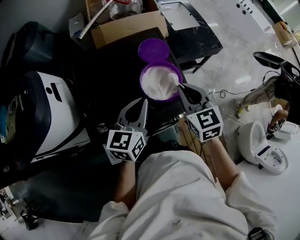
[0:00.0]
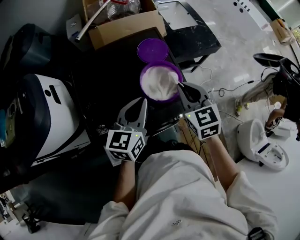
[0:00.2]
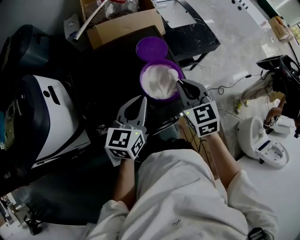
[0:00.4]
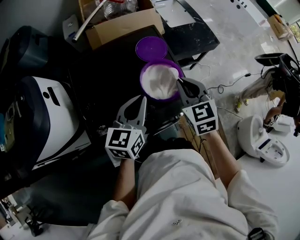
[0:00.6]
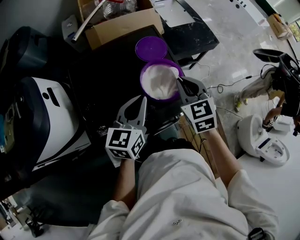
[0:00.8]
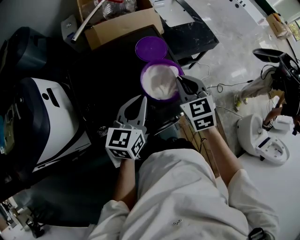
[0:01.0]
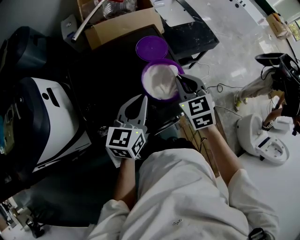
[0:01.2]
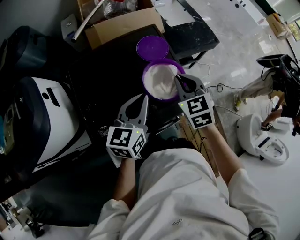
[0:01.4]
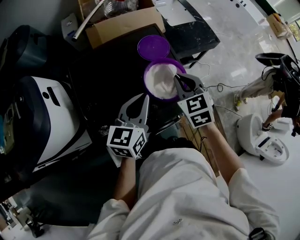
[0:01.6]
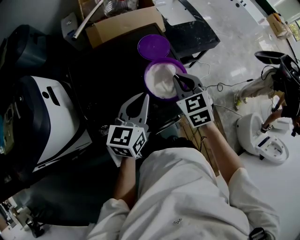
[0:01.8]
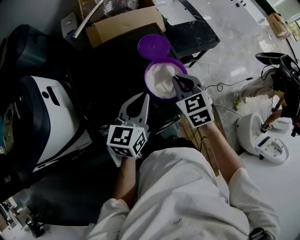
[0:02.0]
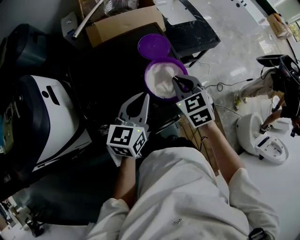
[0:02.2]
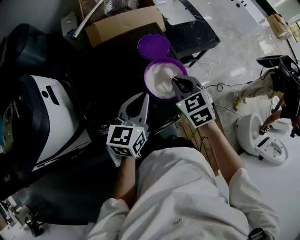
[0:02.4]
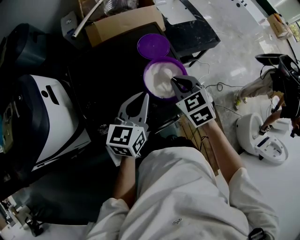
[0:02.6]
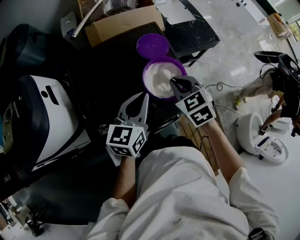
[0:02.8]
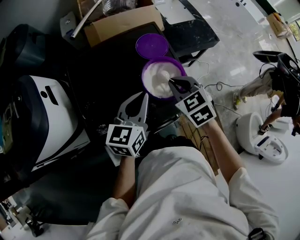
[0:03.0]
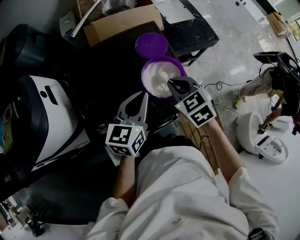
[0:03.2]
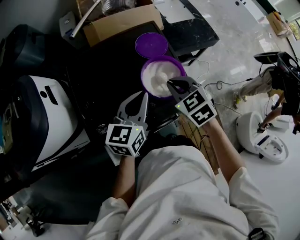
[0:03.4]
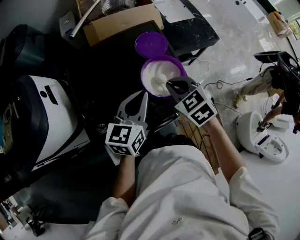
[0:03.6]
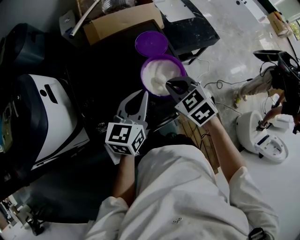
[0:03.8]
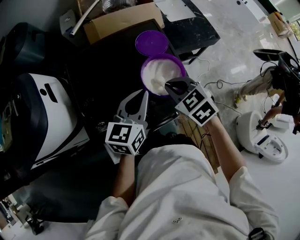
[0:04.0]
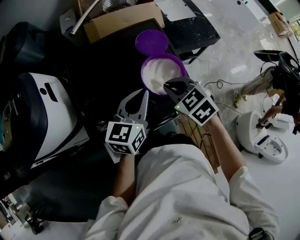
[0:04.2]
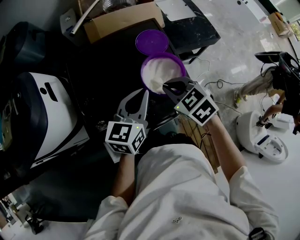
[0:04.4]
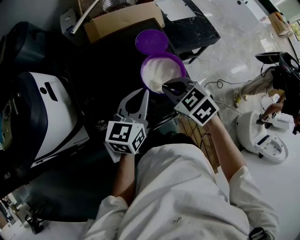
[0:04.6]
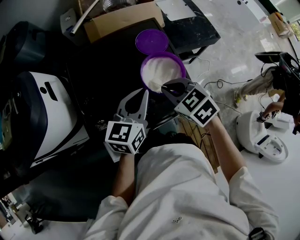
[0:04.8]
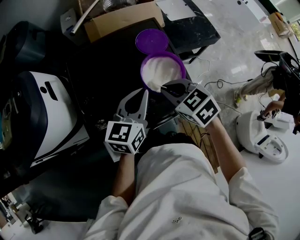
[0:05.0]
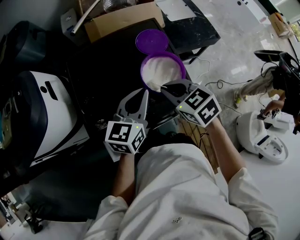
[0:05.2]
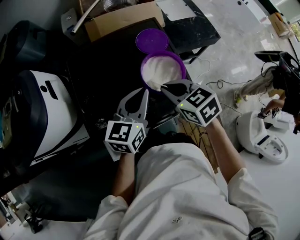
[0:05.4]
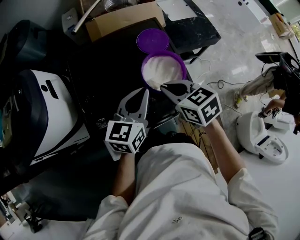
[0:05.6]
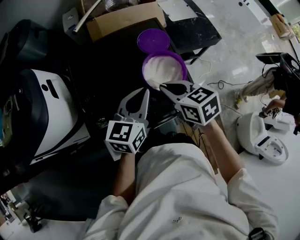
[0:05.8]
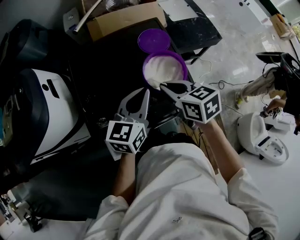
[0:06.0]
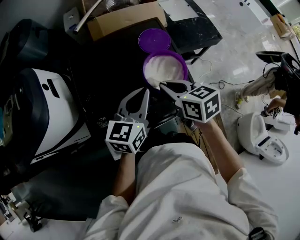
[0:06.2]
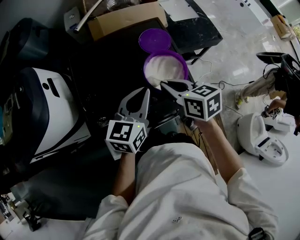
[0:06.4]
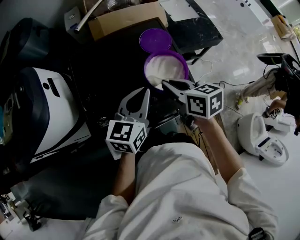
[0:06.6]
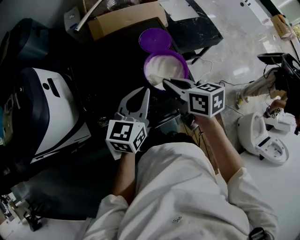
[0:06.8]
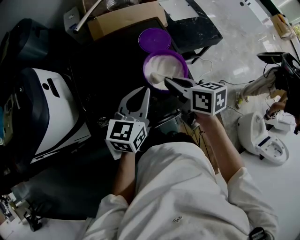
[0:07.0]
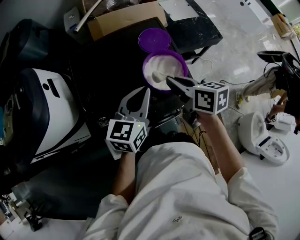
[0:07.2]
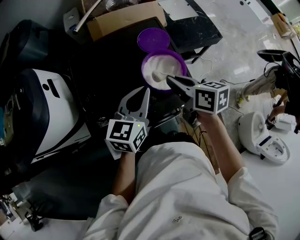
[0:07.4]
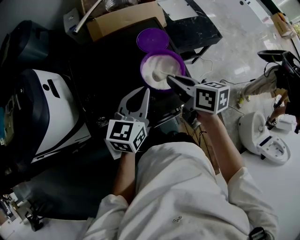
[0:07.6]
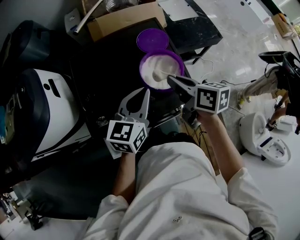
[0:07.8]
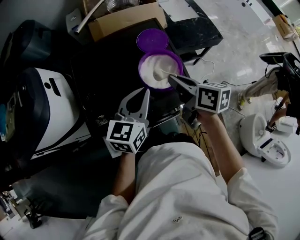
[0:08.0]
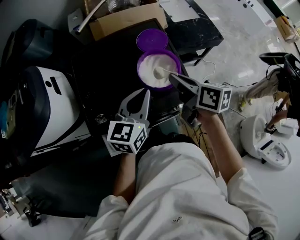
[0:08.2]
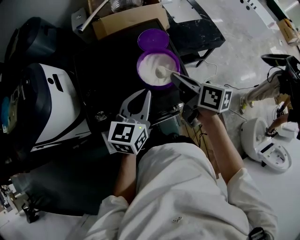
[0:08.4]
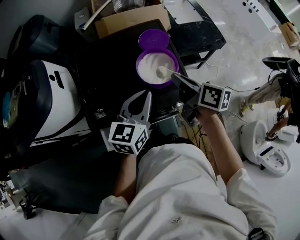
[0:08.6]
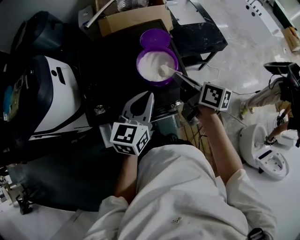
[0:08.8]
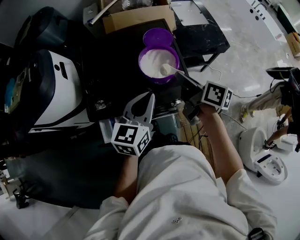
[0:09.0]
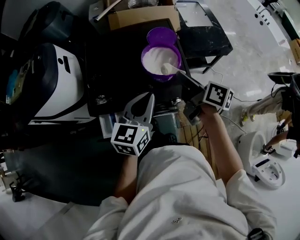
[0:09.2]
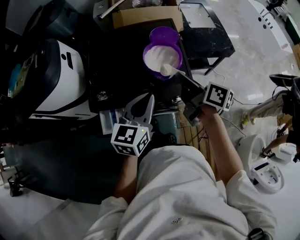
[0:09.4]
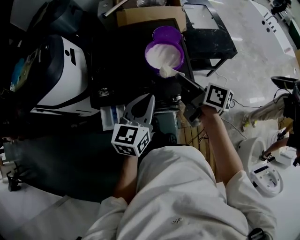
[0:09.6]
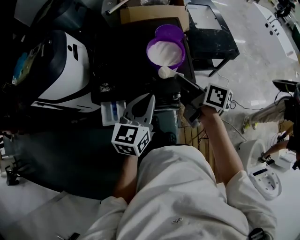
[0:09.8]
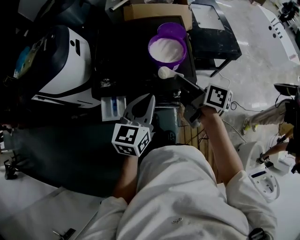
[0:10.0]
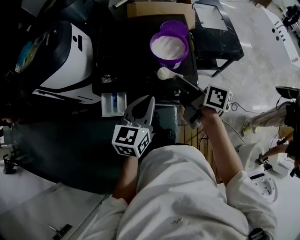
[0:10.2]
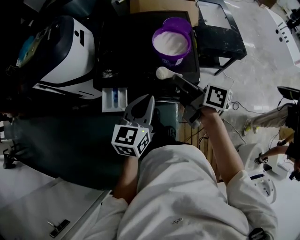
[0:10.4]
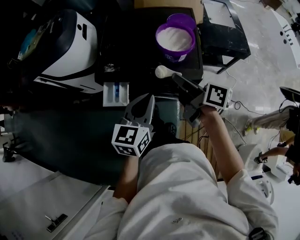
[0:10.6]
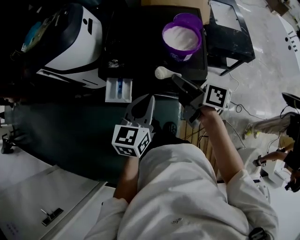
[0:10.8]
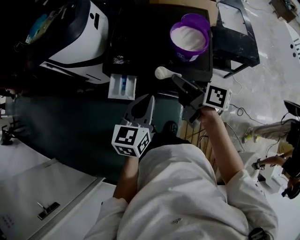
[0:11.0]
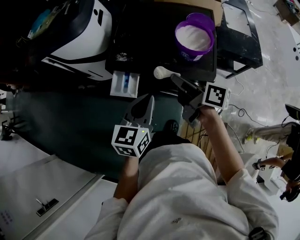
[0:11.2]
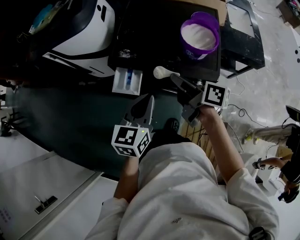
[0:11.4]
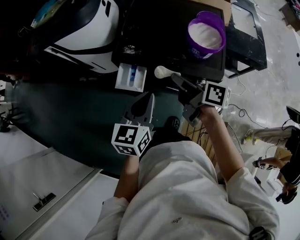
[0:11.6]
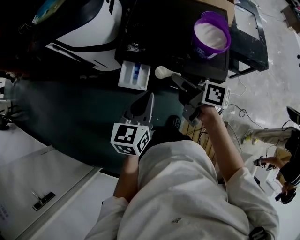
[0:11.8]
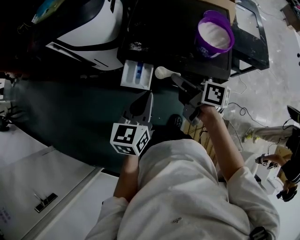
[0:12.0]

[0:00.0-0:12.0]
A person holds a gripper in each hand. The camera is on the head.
0:00.0 to 0:01.6: The right gripper ends up approximately 5 cm from where it was.
0:01.6 to 0:03.0: The grippers stay close to where they were, moving slightly.
0:03.0 to 0:04.4: The grippers move only a little.
0:04.4 to 0:06.0: The right gripper changes its angle by approximately 30 degrees.
0:06.0 to 0:07.6: The right gripper changes its angle by approximately 20 degrees.
0:07.6 to 0:09.0: The right gripper travels to the right by about 5 cm; the left gripper goes about 10 cm backward.
0:09.0 to 0:10.4: The right gripper shifts roughly 10 cm backward and to the left, while the left gripper heads backward, covering about 10 cm.
0:10.4 to 0:12.0: Both grippers move to the left, approximately 15 cm.

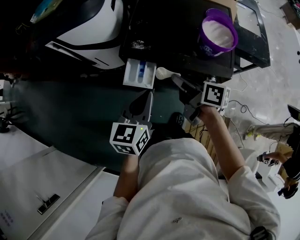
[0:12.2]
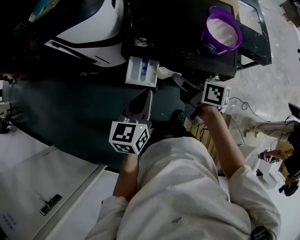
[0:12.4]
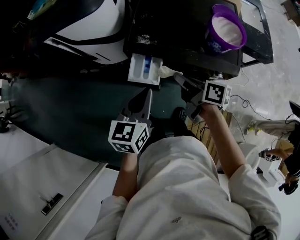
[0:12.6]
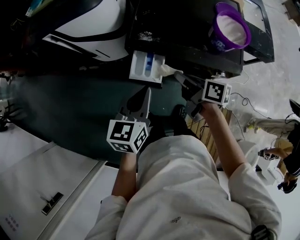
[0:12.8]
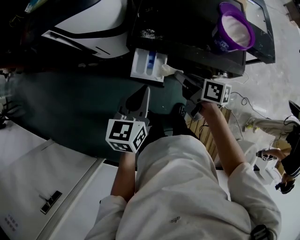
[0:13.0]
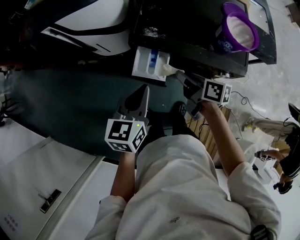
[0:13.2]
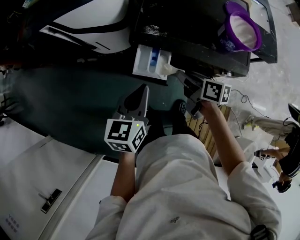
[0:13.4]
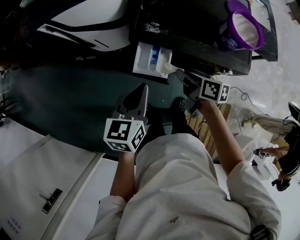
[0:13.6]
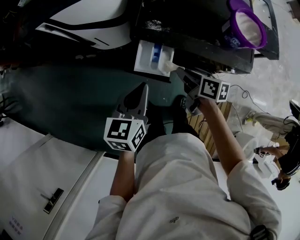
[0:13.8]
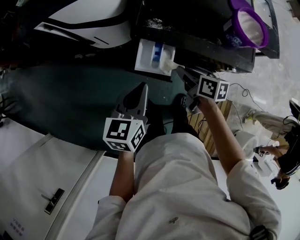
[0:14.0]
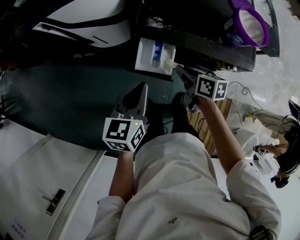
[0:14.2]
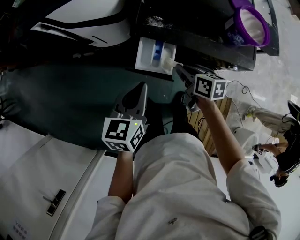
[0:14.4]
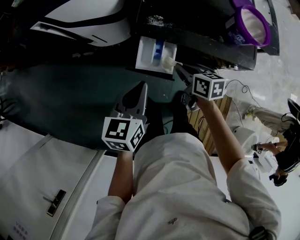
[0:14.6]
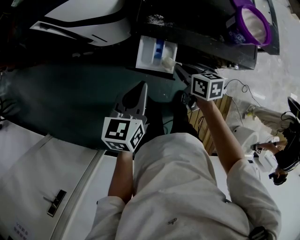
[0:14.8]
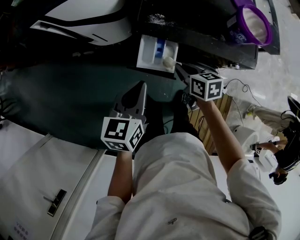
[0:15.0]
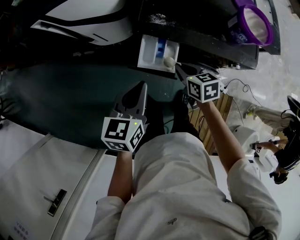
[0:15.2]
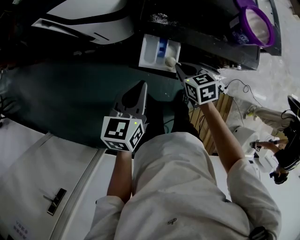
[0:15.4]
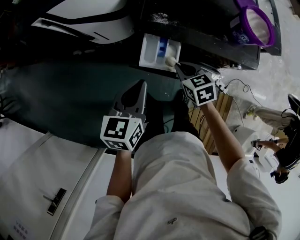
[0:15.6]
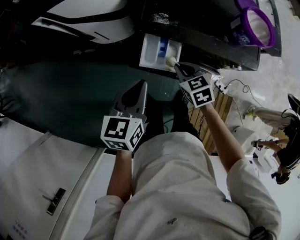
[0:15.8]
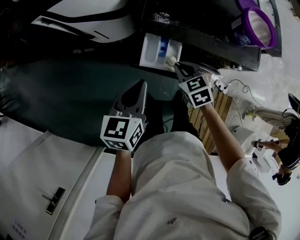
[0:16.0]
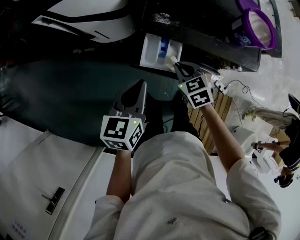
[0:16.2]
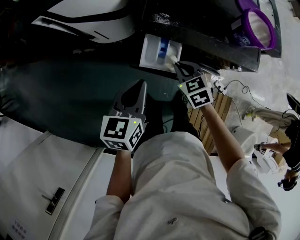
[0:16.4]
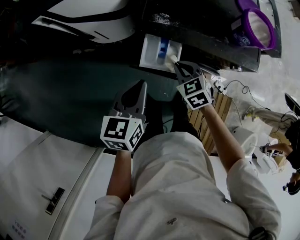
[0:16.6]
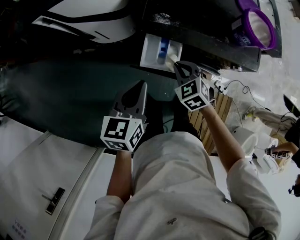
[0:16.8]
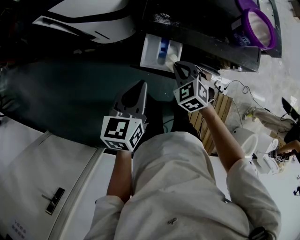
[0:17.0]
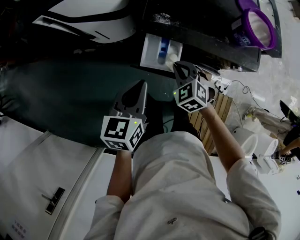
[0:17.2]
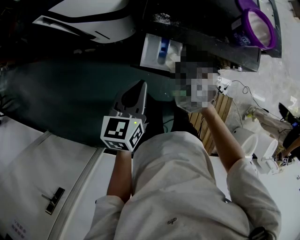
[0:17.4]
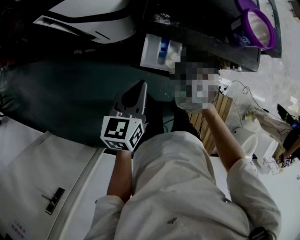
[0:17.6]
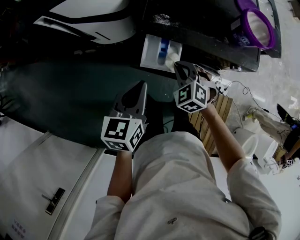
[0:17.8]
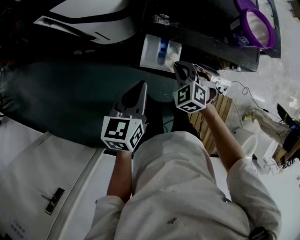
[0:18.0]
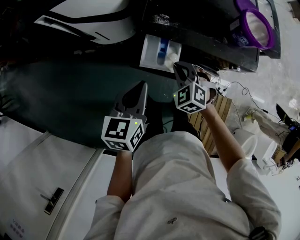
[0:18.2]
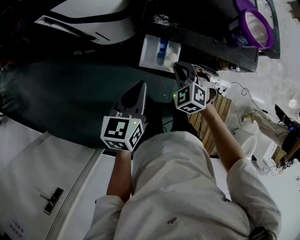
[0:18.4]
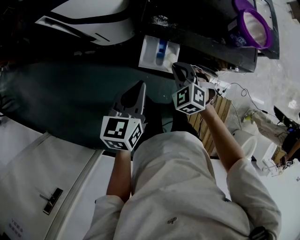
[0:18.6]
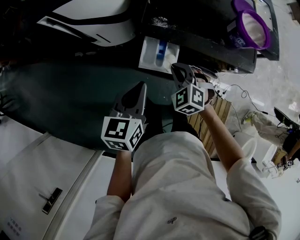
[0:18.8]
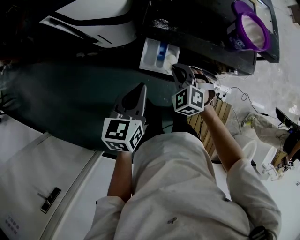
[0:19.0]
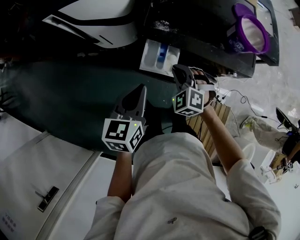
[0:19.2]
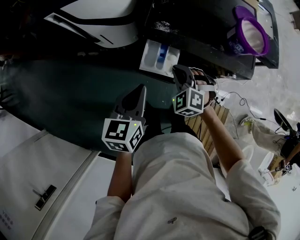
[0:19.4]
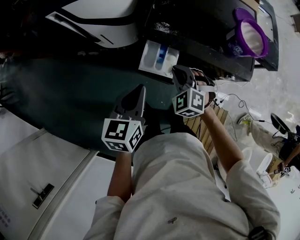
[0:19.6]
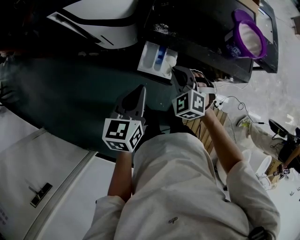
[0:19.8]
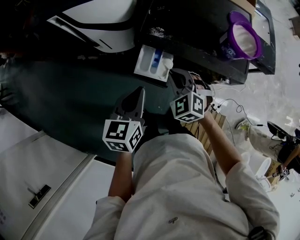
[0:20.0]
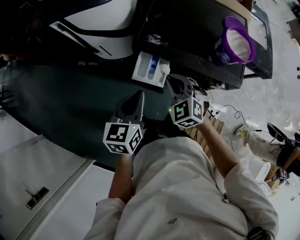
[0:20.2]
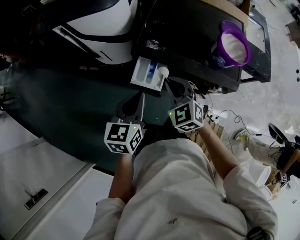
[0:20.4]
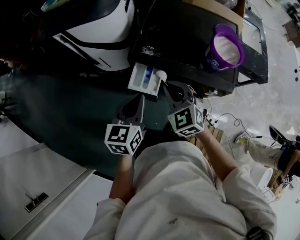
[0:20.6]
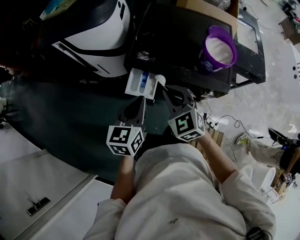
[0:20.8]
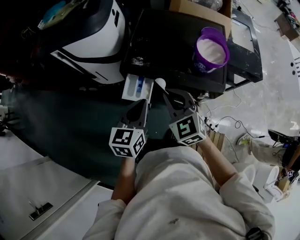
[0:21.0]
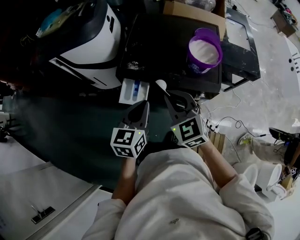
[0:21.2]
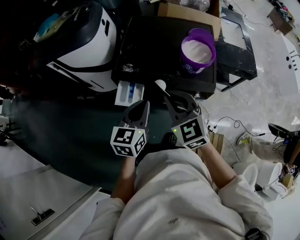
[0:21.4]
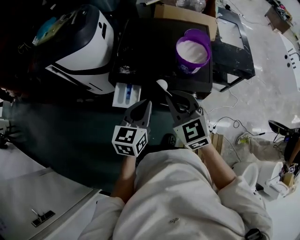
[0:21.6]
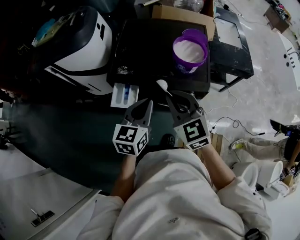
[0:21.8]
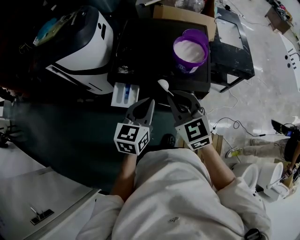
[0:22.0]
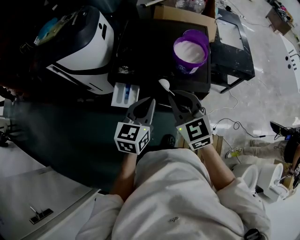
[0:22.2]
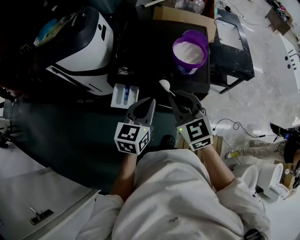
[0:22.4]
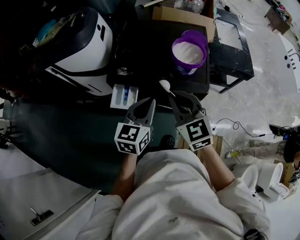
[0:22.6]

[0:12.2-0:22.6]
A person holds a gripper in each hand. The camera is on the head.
0:12.2 to 0:13.6: The left gripper is displaced to the left by about 10 cm, while the right gripper moves downward and to the left, some 10 cm.
0:13.6 to 0:15.2: The right gripper shifts some 5 cm downward, and changes its angle by about 30 degrees.
0:15.2 to 0:16.6: The right gripper swivels some 30 degrees.
0:16.6 to 0:18.2: The right gripper turns by approximately 30 degrees.
0:18.2 to 0:19.6: There are only small adjustments of the grippers.
0:19.6 to 0:21.2: The right gripper is displaced upward and to the right by about 20 cm, and rotates approximately 30 degrees. Meanwhile the left gripper goes some 15 cm to the right.
0:21.2 to 0:22.6: Both grippers move to the right, roughly 10 cm.

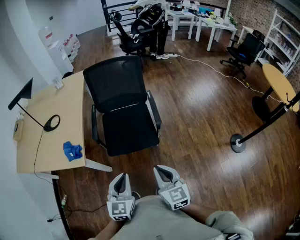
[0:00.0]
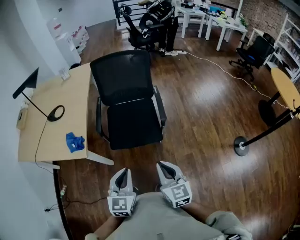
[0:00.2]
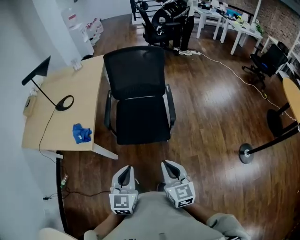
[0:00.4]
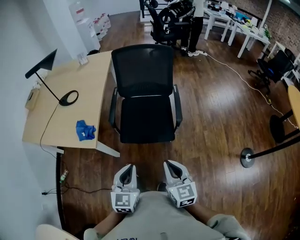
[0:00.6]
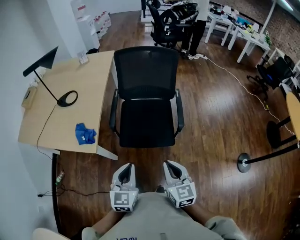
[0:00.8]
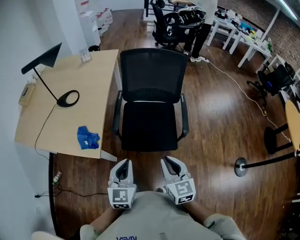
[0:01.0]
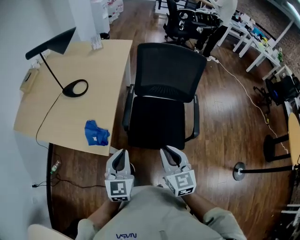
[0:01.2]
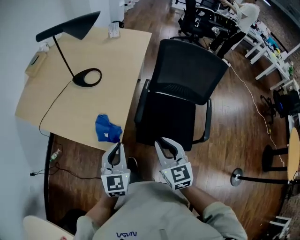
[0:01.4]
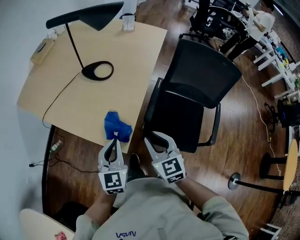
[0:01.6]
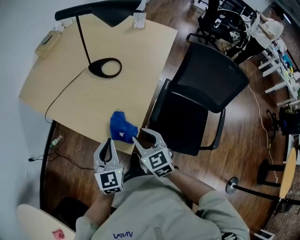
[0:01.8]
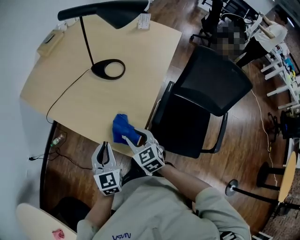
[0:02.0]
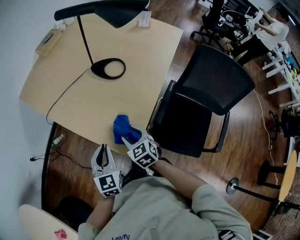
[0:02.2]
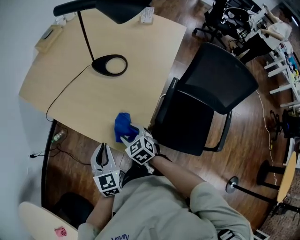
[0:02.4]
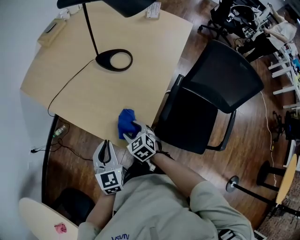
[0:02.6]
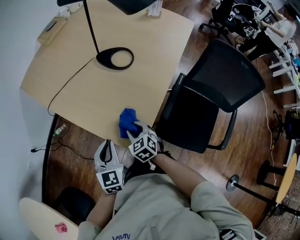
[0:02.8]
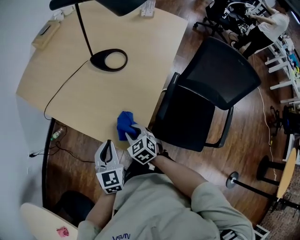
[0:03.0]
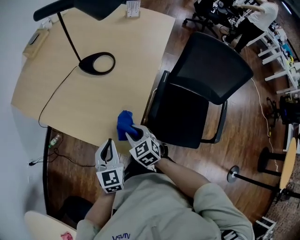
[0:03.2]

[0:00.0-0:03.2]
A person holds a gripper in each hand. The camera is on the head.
0:00.0 to 0:01.6: The pair of grippers is taken approximately 40 cm. The right gripper rotates some 30 degrees, and opens; the left gripper changes its angle by some 30 degrees.
0:01.6 to 0:03.2: The right gripper heads downward, forward and to the left, covering some 20 cm, changes its angle by approximately 20 degrees, and opens, then closes once more. The left gripper goes some 5 cm downward.
